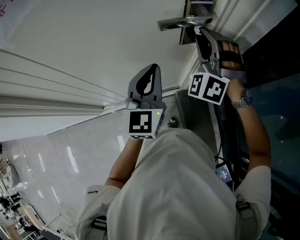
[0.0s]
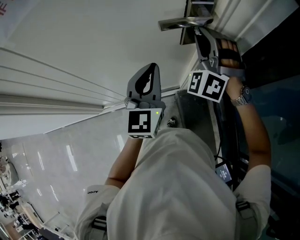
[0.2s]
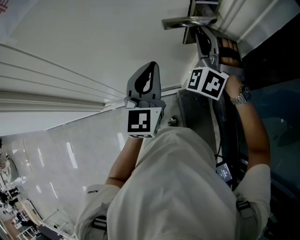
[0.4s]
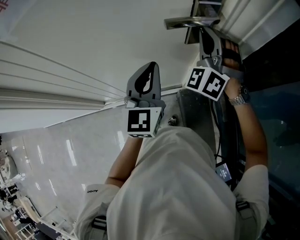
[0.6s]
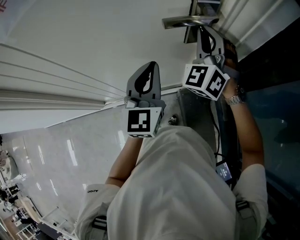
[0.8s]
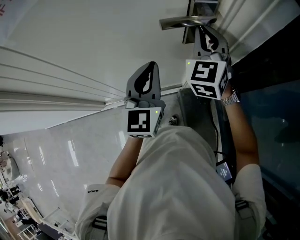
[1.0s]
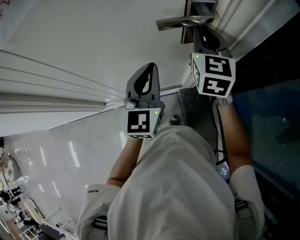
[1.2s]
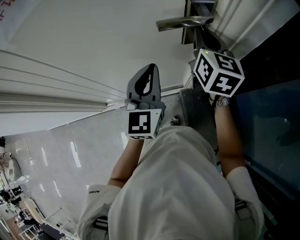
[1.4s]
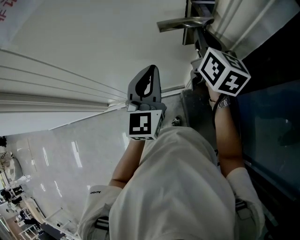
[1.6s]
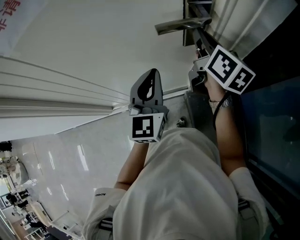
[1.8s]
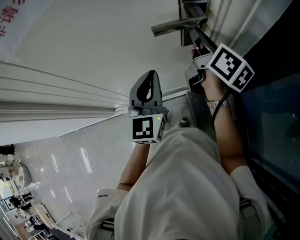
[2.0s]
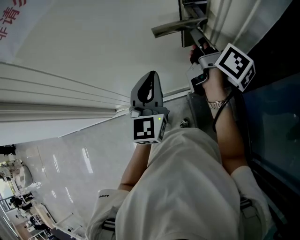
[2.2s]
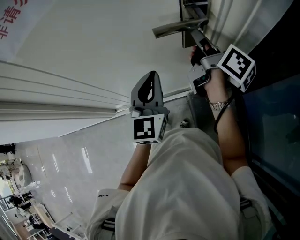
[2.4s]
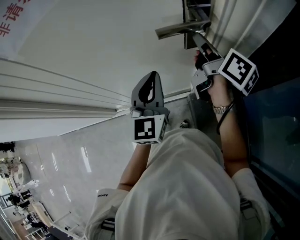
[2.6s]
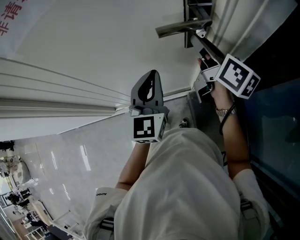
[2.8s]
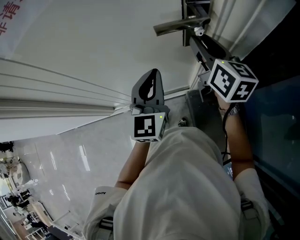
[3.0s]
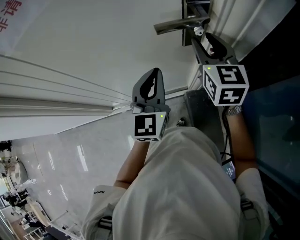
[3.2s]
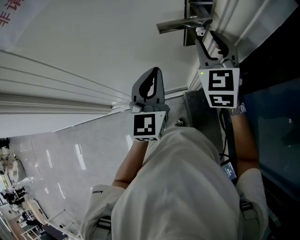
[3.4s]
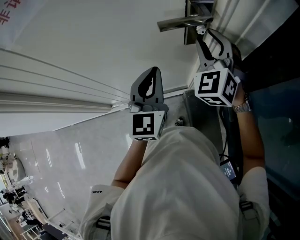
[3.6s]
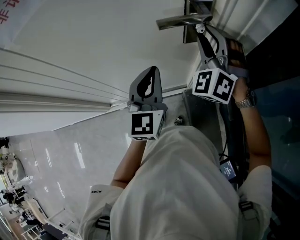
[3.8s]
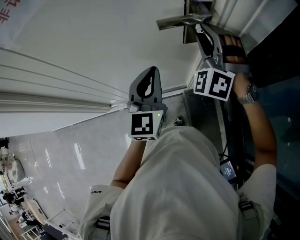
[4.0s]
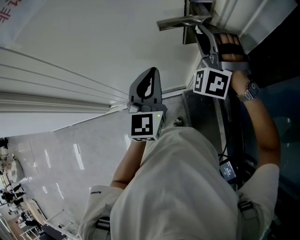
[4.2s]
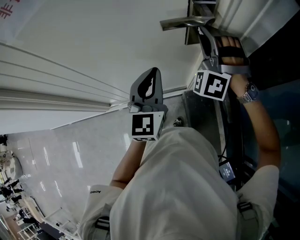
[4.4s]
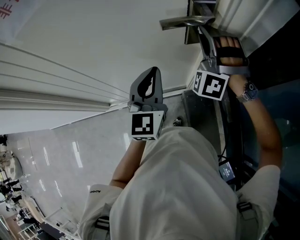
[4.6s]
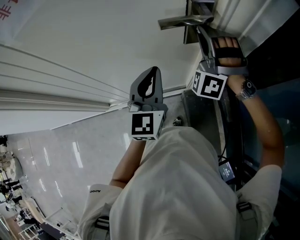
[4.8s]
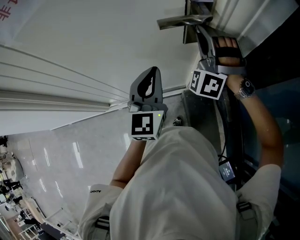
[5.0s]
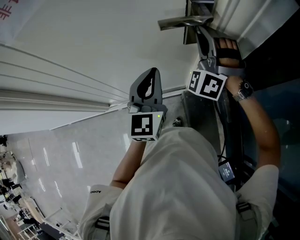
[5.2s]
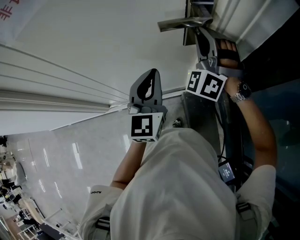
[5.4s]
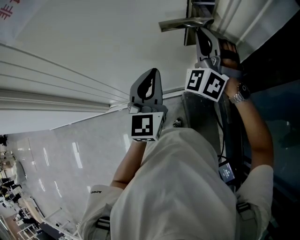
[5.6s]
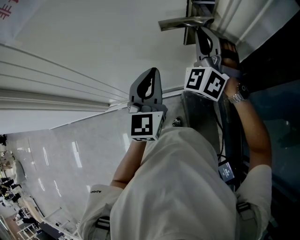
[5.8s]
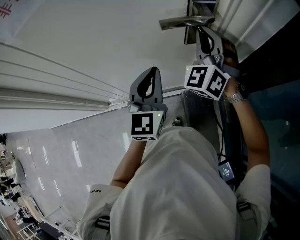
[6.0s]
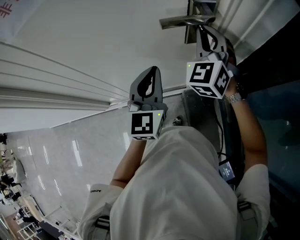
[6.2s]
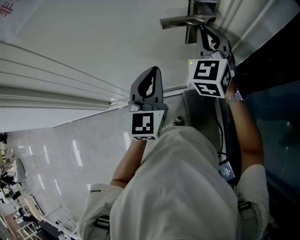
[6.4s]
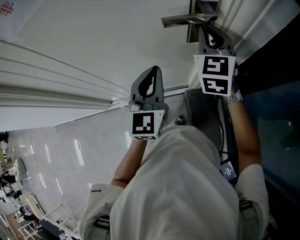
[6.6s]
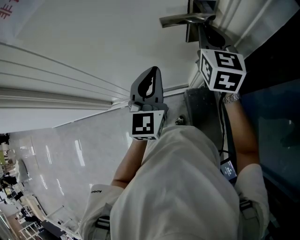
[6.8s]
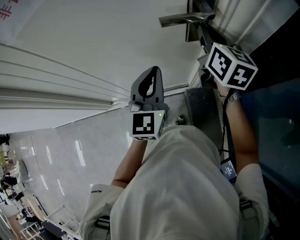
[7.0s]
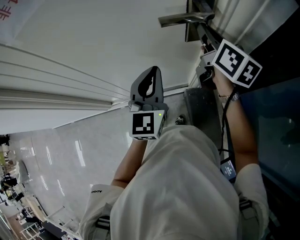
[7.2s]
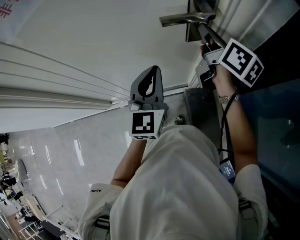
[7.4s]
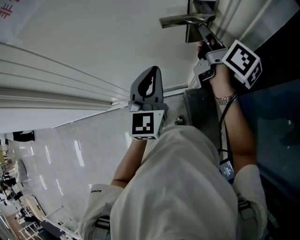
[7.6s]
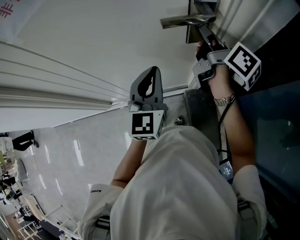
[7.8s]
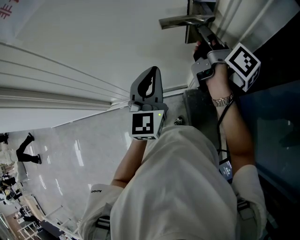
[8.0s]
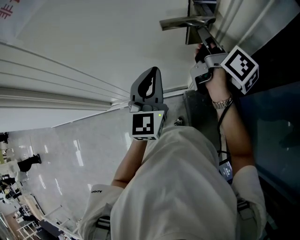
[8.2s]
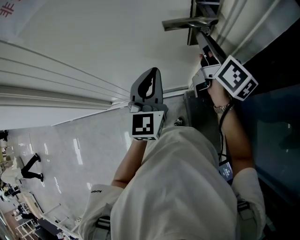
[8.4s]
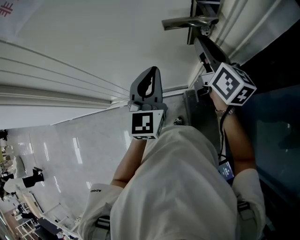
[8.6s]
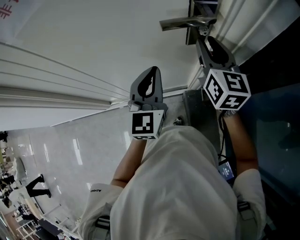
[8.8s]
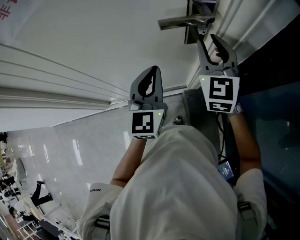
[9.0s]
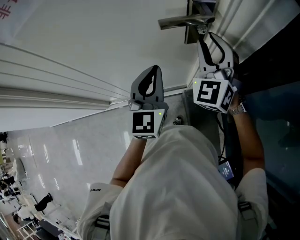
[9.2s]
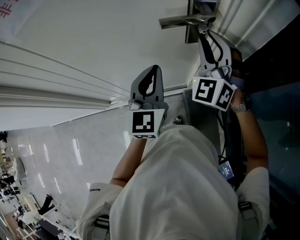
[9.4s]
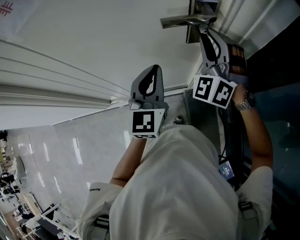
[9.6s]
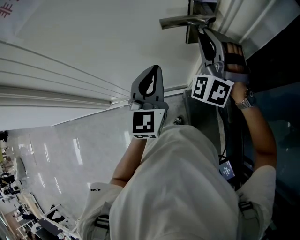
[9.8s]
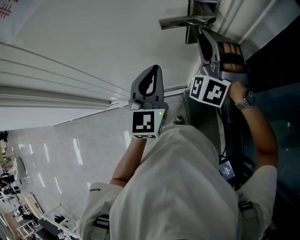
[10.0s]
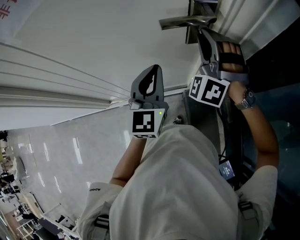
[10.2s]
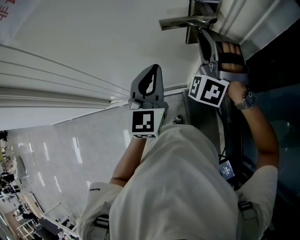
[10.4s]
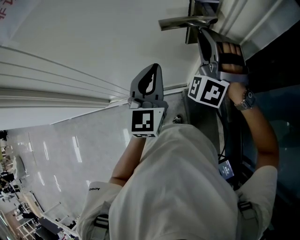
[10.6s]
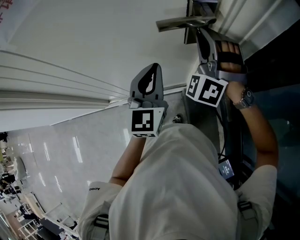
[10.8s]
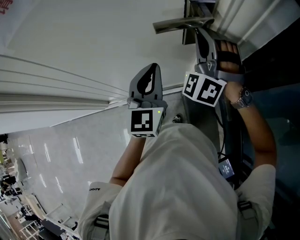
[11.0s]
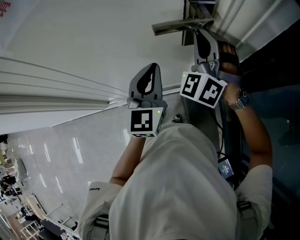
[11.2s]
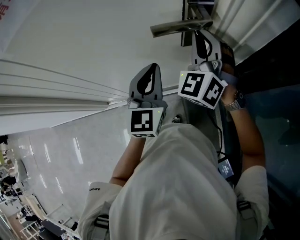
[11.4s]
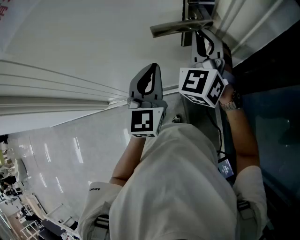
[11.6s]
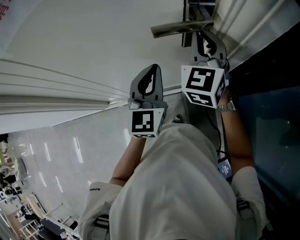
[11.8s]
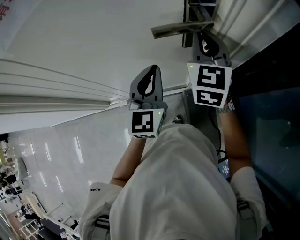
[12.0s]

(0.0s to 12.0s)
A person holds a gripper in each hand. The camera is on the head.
0.0s - 1.6s: The right gripper rolls clockwise, seen from behind, by about 100 degrees.
1.6s - 3.0s: The right gripper opens its fingers.
3.0s - 4.4s: The right gripper rolls counterclockwise, seen from behind, by some 110 degrees.
4.4s - 6.0s: The right gripper swivels some 30 degrees.
6.0s - 7.6s: The right gripper rolls clockwise, seen from behind, by approximately 110 degrees.
7.6s - 9.0s: The right gripper rotates around the line of its fingers by roughly 70 degrees, counterclockwise from behind, and opens.
9.0s - 10.4s: The right gripper rolls counterclockwise, seen from behind, by some 60 degrees.
10.4s - 12.0s: The right gripper rotates around the line of its fingers by about 70 degrees, clockwise from behind, and closes up.

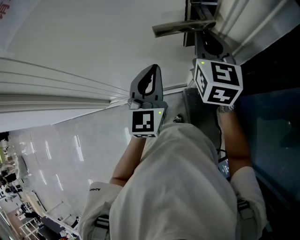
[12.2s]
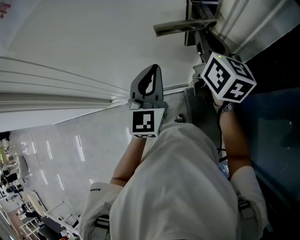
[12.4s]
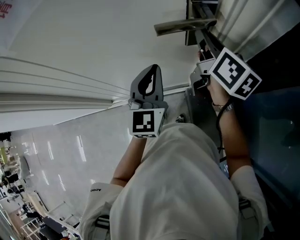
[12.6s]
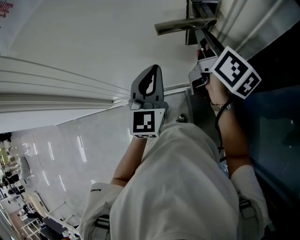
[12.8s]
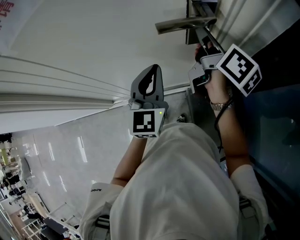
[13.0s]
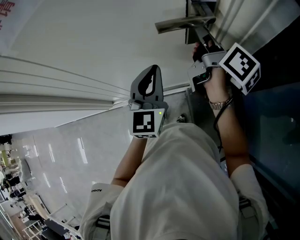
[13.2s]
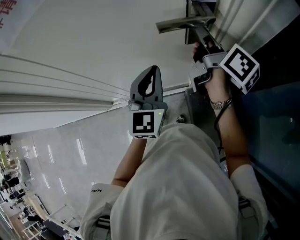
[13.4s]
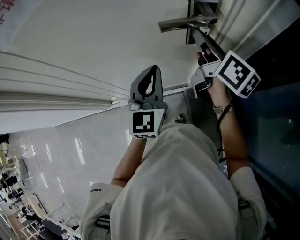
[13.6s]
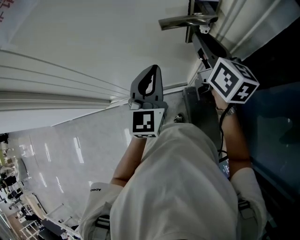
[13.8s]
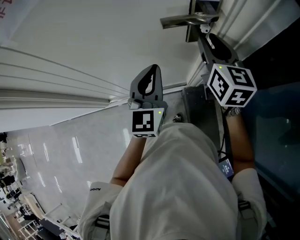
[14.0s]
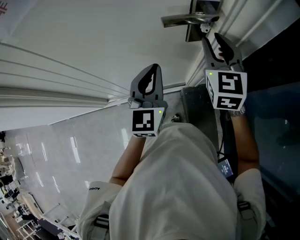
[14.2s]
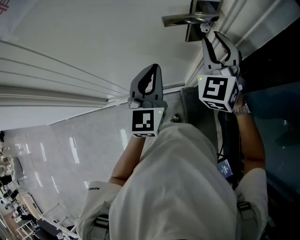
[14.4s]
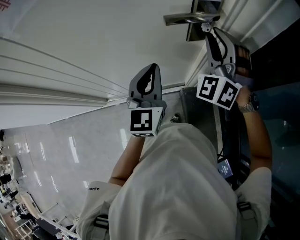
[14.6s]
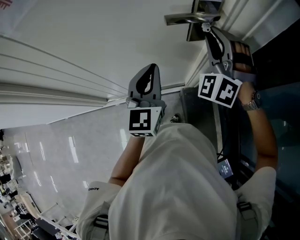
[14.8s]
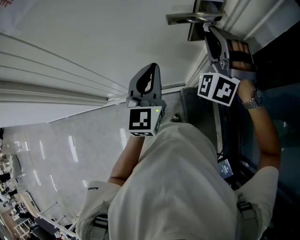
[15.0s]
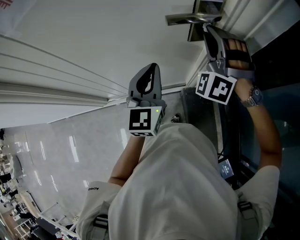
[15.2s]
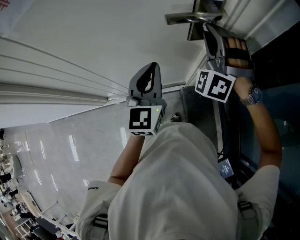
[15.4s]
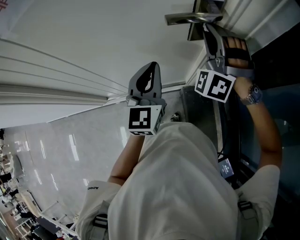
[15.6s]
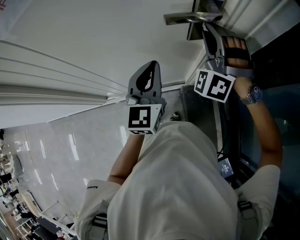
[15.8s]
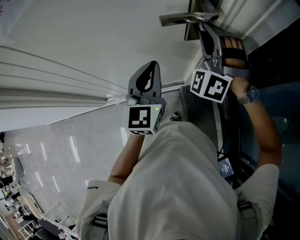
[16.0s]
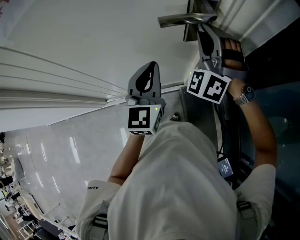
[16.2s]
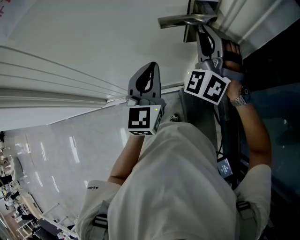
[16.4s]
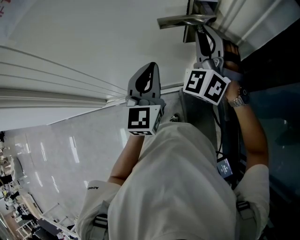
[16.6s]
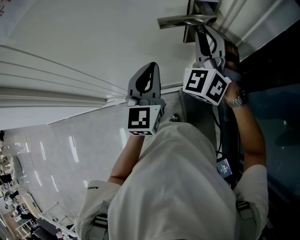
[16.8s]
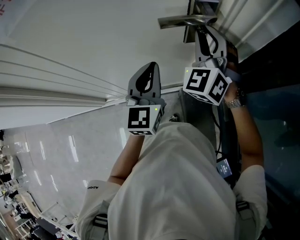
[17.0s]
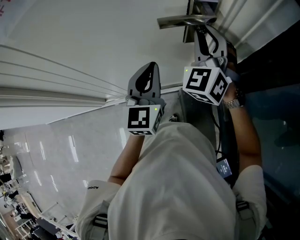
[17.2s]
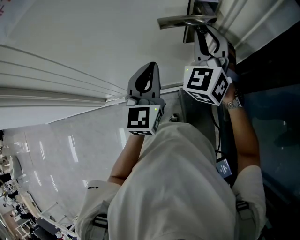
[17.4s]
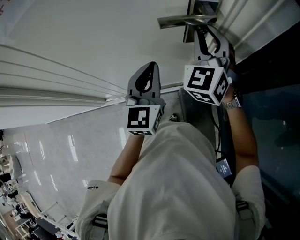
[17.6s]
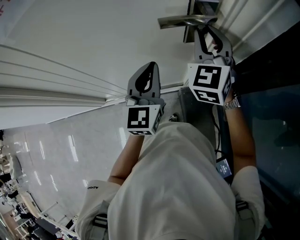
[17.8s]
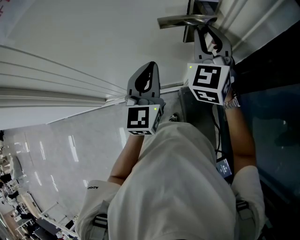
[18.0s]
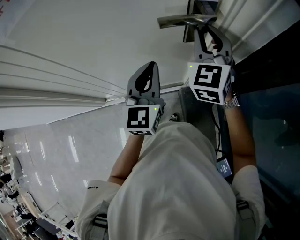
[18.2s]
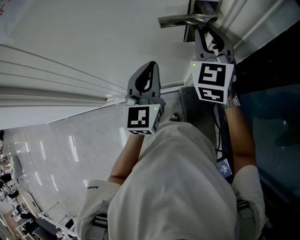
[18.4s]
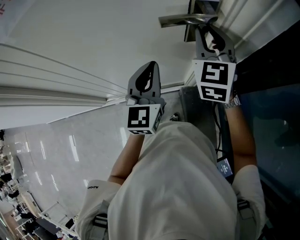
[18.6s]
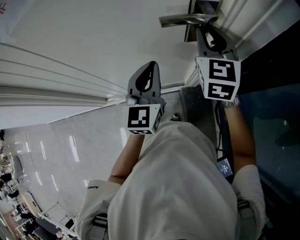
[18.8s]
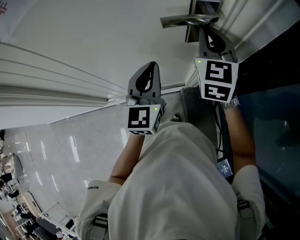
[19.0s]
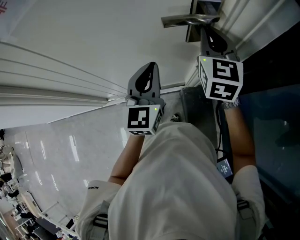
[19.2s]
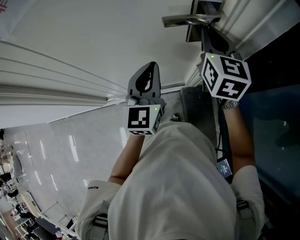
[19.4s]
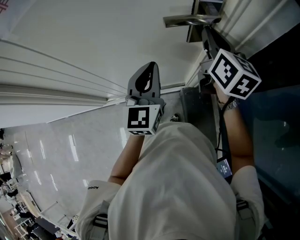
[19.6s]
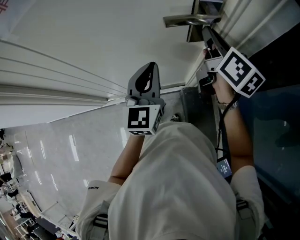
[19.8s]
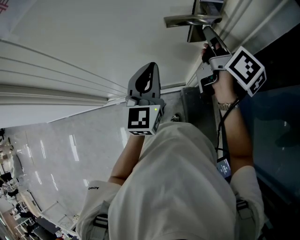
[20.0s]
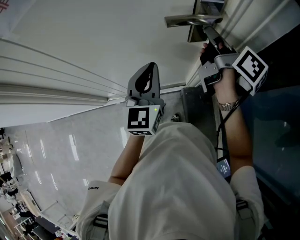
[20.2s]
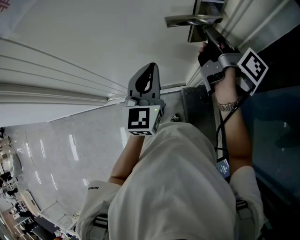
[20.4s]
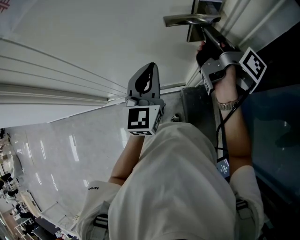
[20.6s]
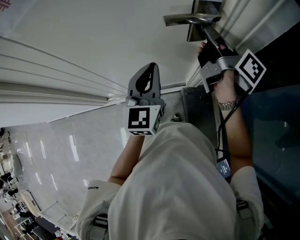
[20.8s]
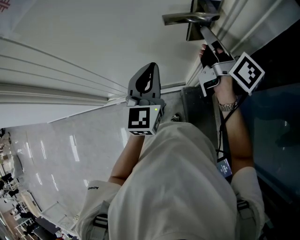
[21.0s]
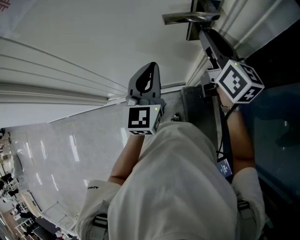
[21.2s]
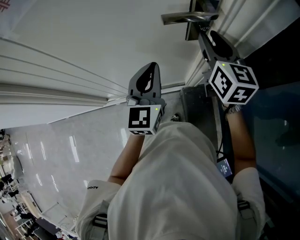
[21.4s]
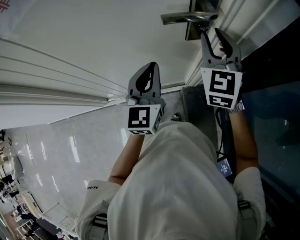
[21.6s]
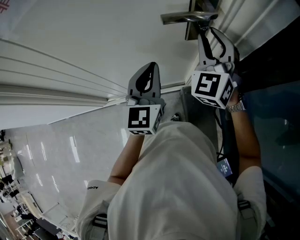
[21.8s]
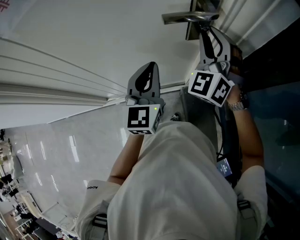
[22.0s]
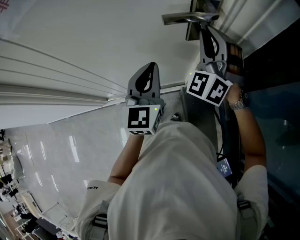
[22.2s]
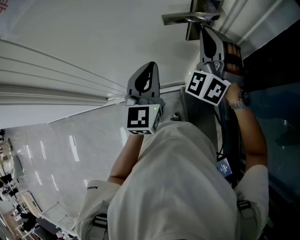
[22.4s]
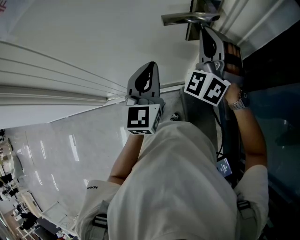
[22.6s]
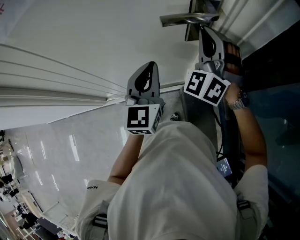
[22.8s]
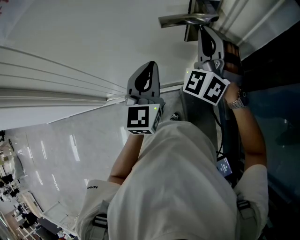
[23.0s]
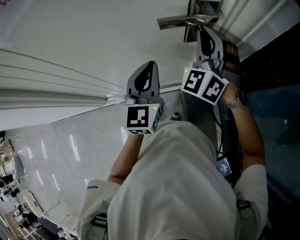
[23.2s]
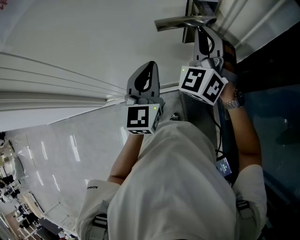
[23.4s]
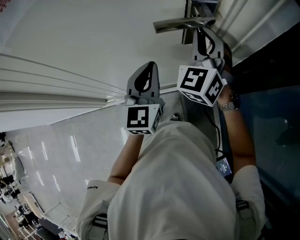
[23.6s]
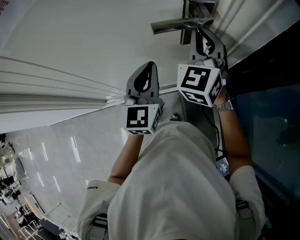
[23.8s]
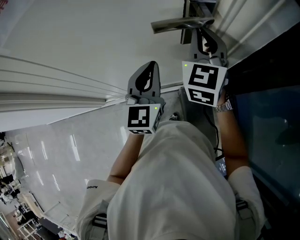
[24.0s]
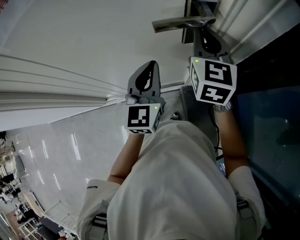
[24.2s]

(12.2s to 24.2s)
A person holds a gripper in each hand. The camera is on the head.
12.2s - 13.8s: The right gripper swivels about 30 degrees, and opens up.
13.8s - 15.2s: The right gripper rolls counterclockwise, seen from behind, by roughly 110 degrees.
15.2s - 16.6s: The right gripper turns by some 20 degrees.
16.6s - 18.2s: The right gripper rotates about 30 degrees.
18.2s - 19.8s: The right gripper rolls clockwise, seen from behind, by about 60 degrees.
19.8s - 21.2s: The right gripper opens up.
21.2s - 22.6s: The right gripper rolls counterclockwise, seen from behind, by about 90 degrees, and closes up.
22.6s - 24.2s: The right gripper rolls clockwise, seen from behind, by approximately 60 degrees.
